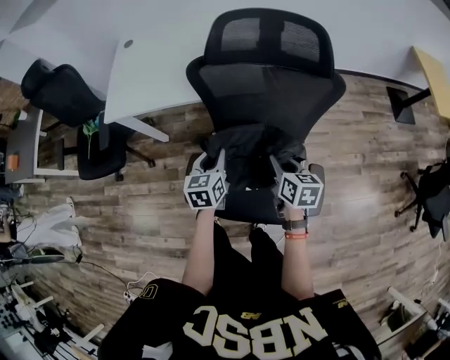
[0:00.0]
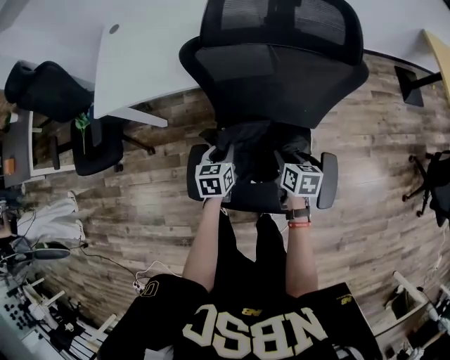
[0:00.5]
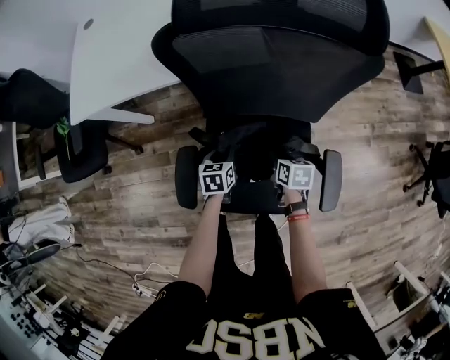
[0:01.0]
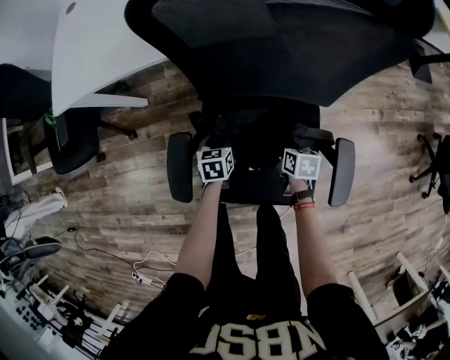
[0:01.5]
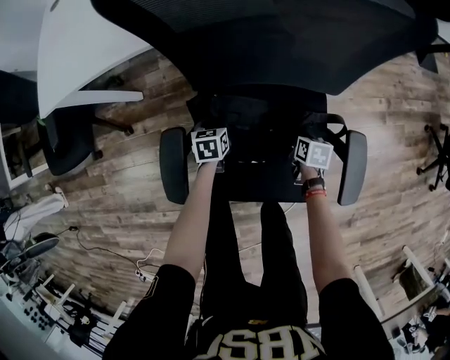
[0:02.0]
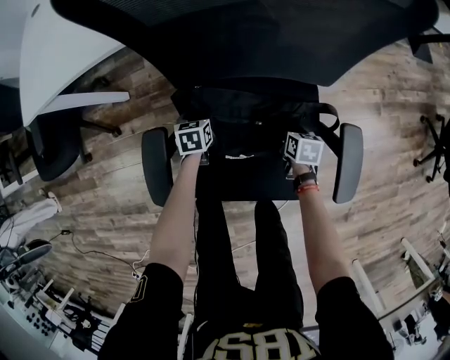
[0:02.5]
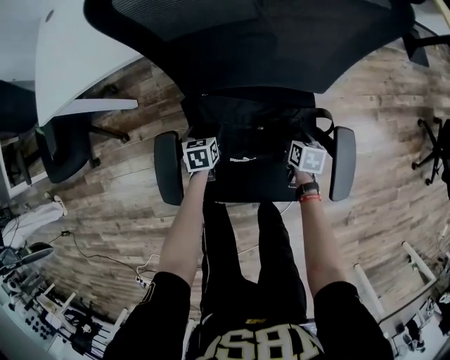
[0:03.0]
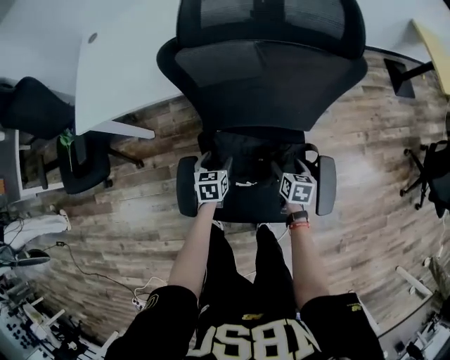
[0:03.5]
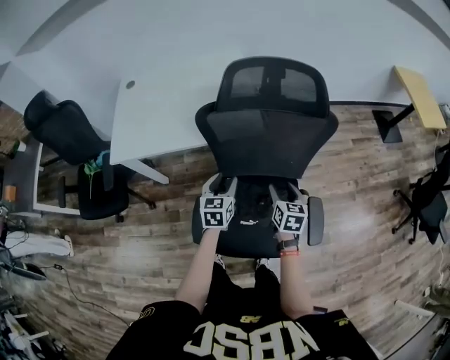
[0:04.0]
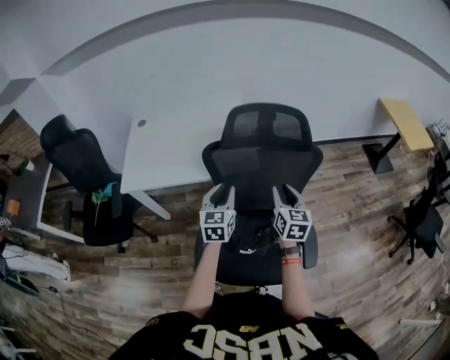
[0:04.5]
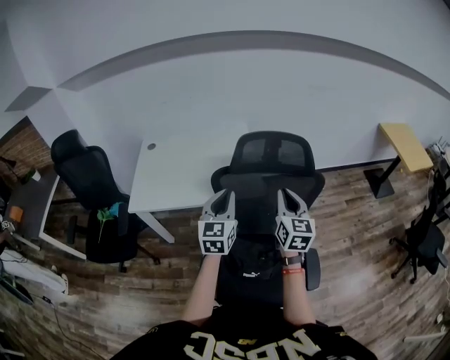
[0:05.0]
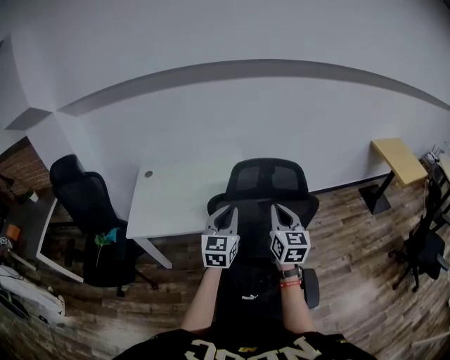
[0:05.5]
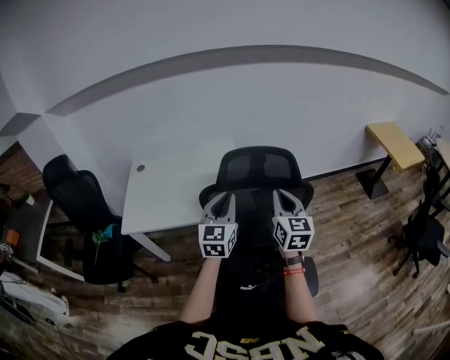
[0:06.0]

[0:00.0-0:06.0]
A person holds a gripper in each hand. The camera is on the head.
0:00.0 to 0:02.0: Both grippers move downward, approximately 40 cm. The right gripper turns by some 30 degrees. The left gripper changes its angle by roughly 30 degrees.
0:02.0 to 0:04.0: The grippers both shift upward by about 35 cm. The left gripper turns by some 30 degrees, while the right gripper rotates approximately 30 degrees.
0:04.0 to 0:06.0: Both grippers move upward, roughly 30 cm. The left gripper rotates about 30 degrees, and closes up. The right gripper swivels approximately 30 degrees, and closes its fingers.

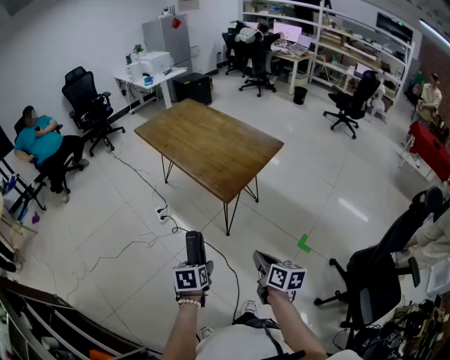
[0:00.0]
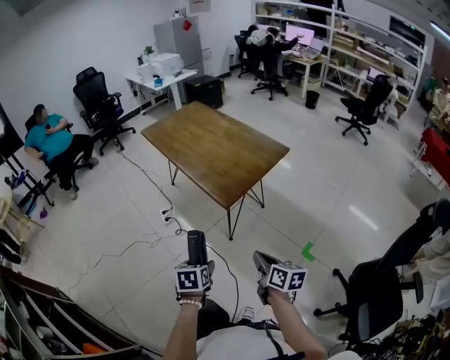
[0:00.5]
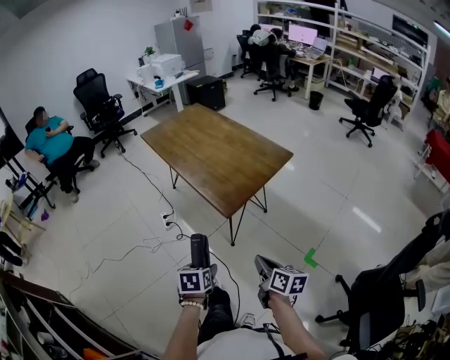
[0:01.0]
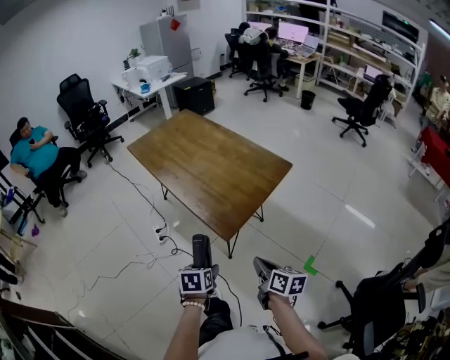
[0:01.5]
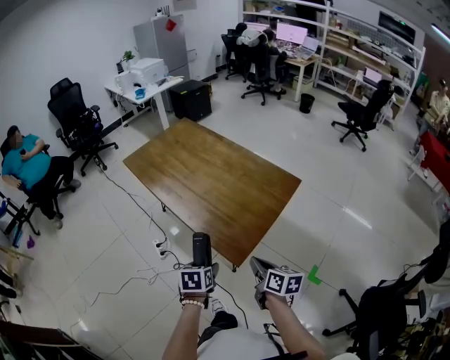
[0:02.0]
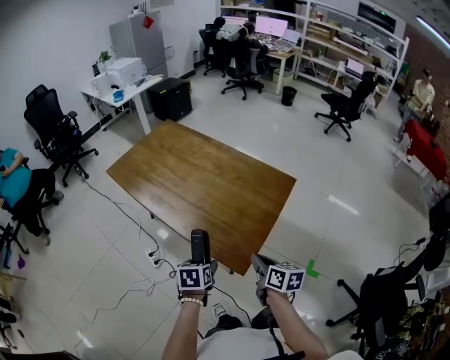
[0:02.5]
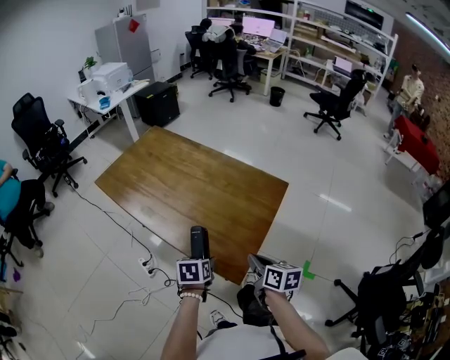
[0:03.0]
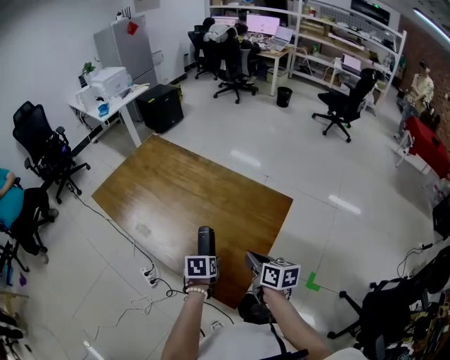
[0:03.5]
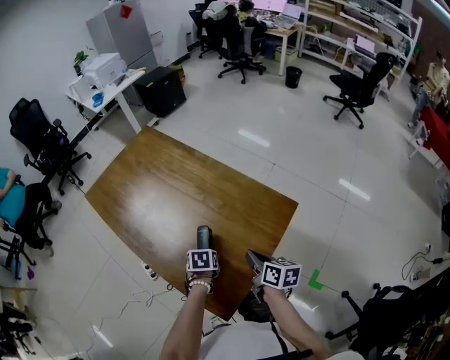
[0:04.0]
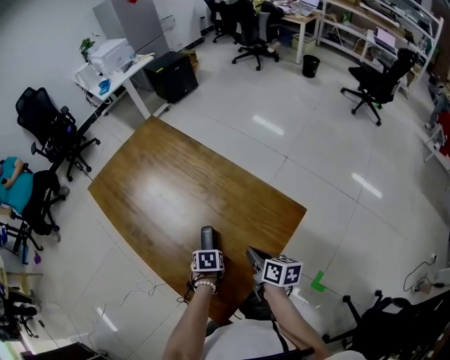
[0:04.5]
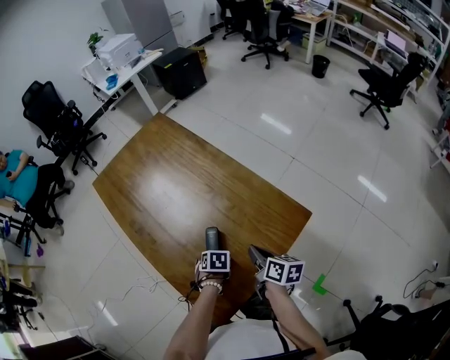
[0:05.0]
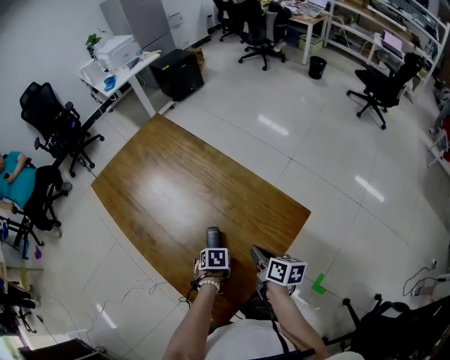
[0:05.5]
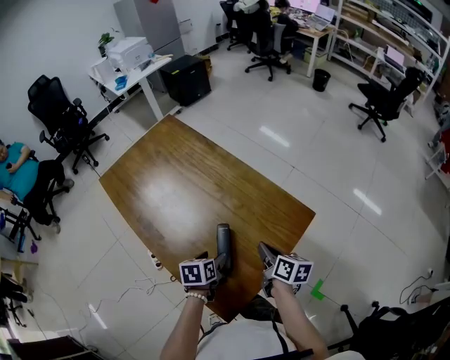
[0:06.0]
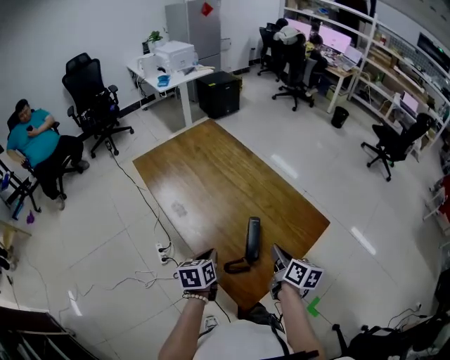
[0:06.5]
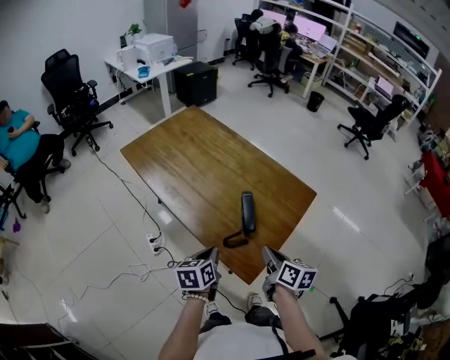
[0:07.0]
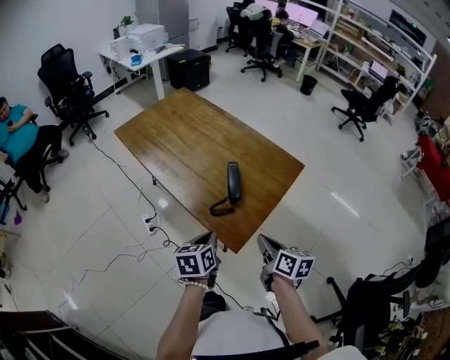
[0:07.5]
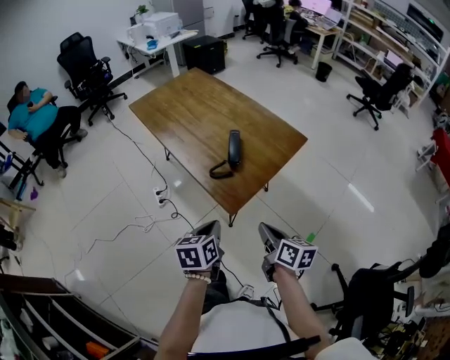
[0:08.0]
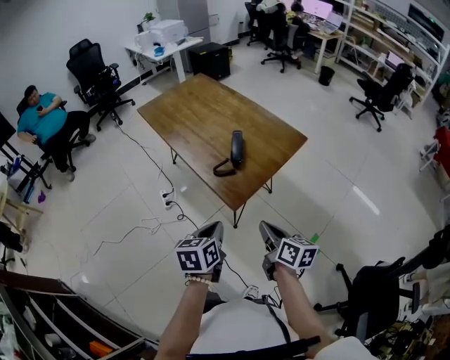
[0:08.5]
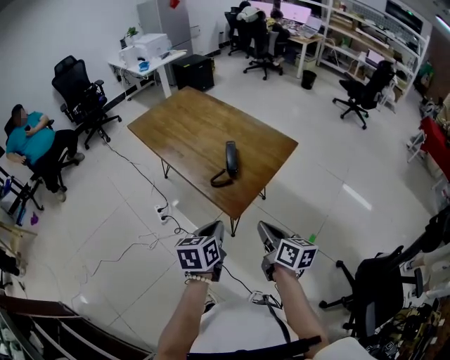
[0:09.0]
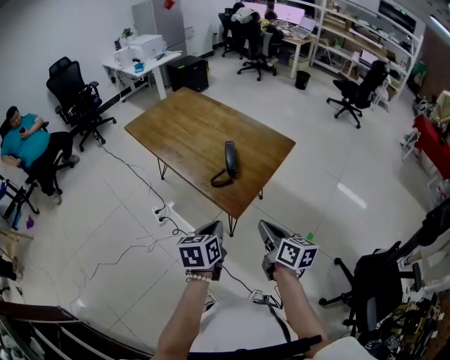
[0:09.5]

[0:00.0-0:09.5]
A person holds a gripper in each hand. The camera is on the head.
0:00.0 to 0:02.0: The two grippers go some 30 cm forward.
0:02.0 to 0:04.0: The right gripper goes approximately 25 cm forward, while the left gripper travels forward and downward by approximately 30 cm, and turns by some 20 degrees.
0:04.0 to 0:05.5: The right gripper changes place by some 5 cm.
0:05.5 to 0:07.5: The right gripper shifts by about 25 cm. Meanwhile the left gripper ends up some 30 cm from where it was, points its fingers approximately 50 degrees further upward, and closes its fingers.
0:07.5 to 0:09.5: Both grippers move backward and upward, about 15 cm.

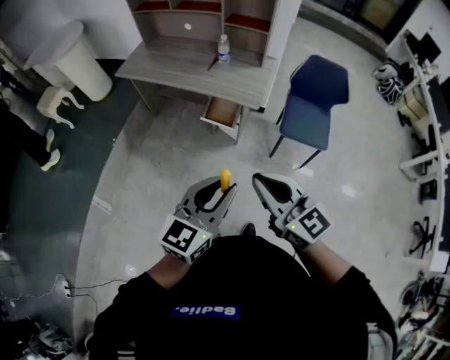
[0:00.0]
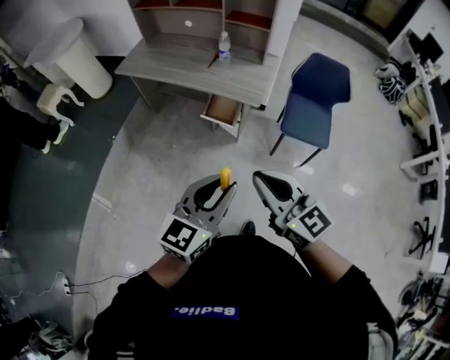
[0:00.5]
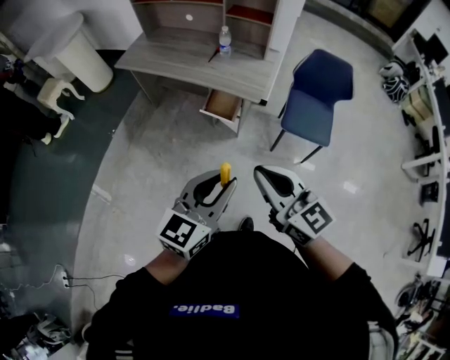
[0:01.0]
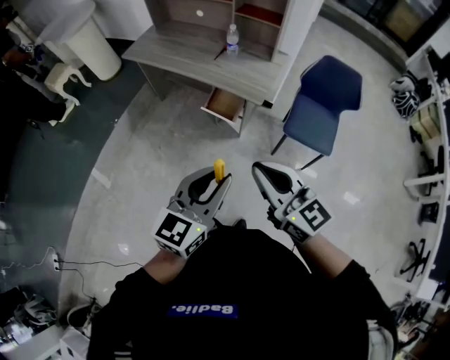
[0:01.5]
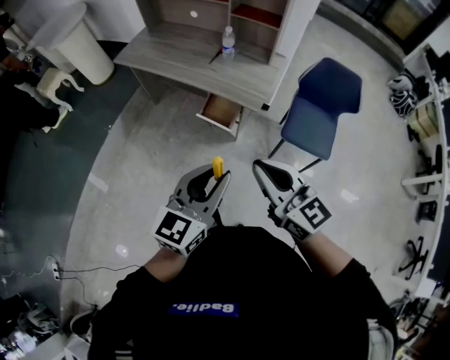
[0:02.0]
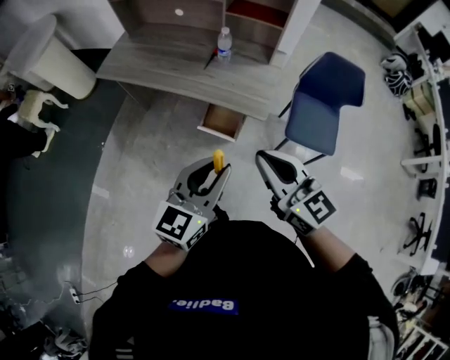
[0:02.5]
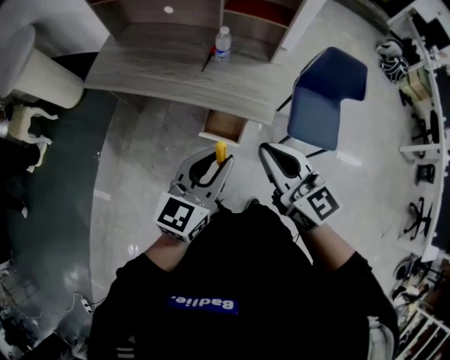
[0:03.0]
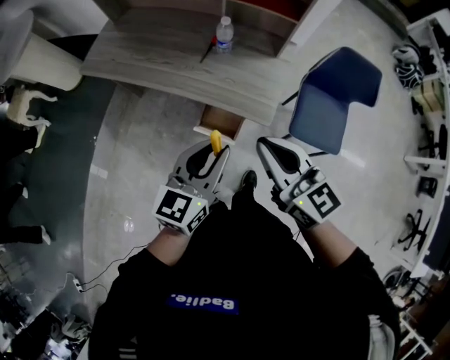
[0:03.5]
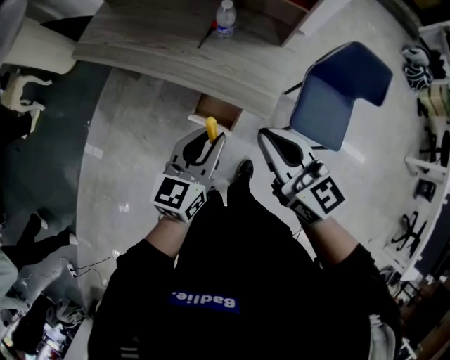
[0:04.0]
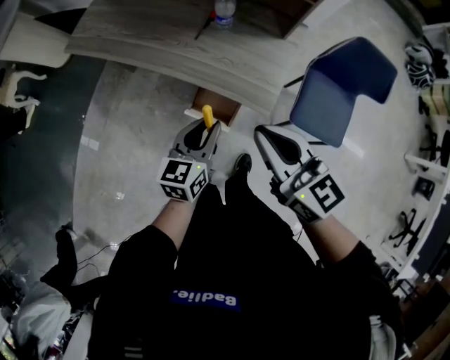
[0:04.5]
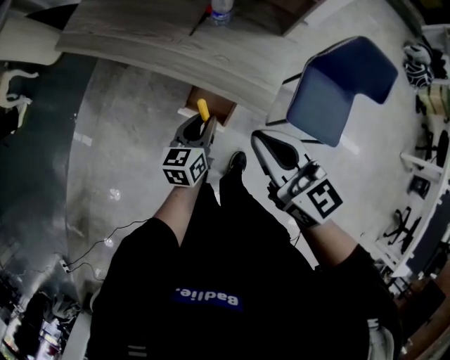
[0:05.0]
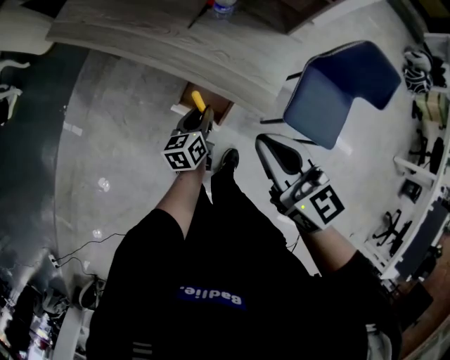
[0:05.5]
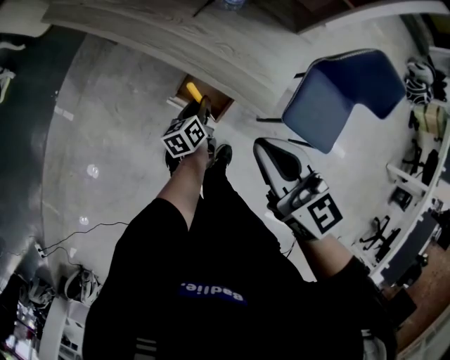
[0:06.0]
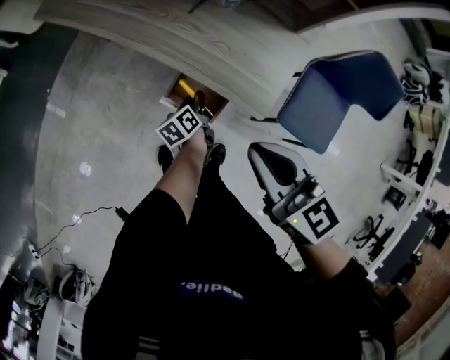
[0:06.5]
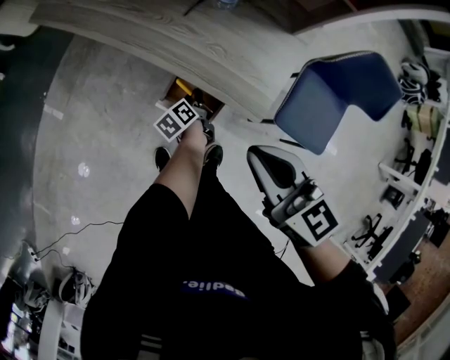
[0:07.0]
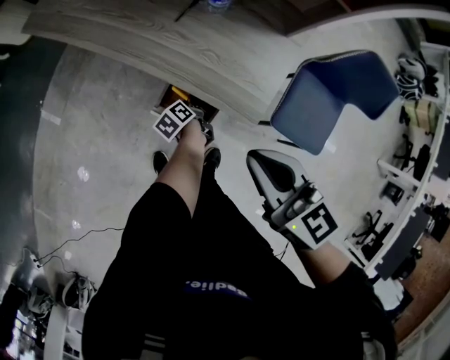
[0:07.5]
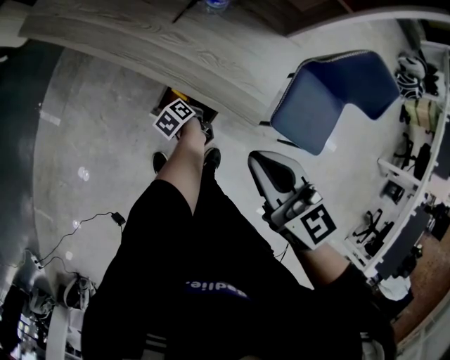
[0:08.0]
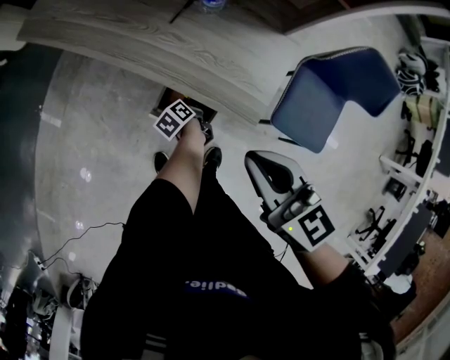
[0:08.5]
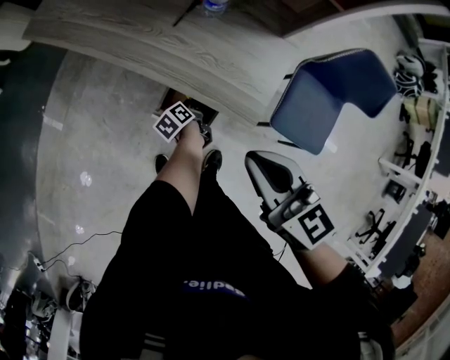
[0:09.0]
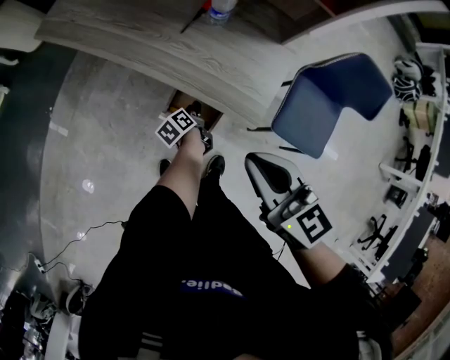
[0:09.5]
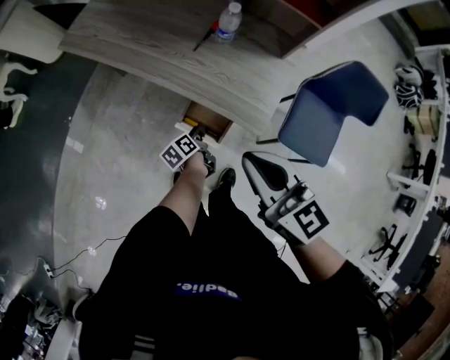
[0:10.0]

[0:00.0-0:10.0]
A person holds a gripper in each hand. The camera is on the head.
0:00.0 to 0:02.0: Both grippers move forward, about 10 cm.
0:02.0 to 0:04.0: The right gripper is displaced forward by roughly 25 cm. The left gripper moves forward and downward, approximately 30 cm.
0:04.0 to 0:06.0: The right gripper heads downward, covering some 10 cm. The left gripper heads downward, covering about 30 cm, and changes its angle by about 50 degrees.
0:06.0 to 0:08.0: The left gripper travels downward by some 10 cm, and swivels some 30 degrees.
0:08.0 to 0:10.0: The right gripper goes about 10 cm upward and to the left. The left gripper goes some 10 cm upward.

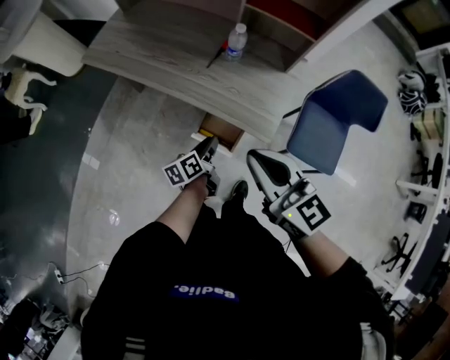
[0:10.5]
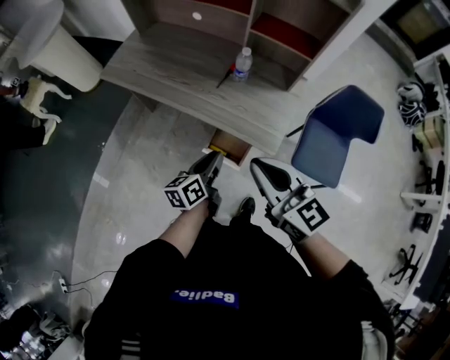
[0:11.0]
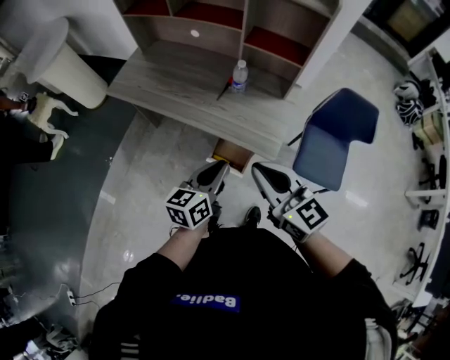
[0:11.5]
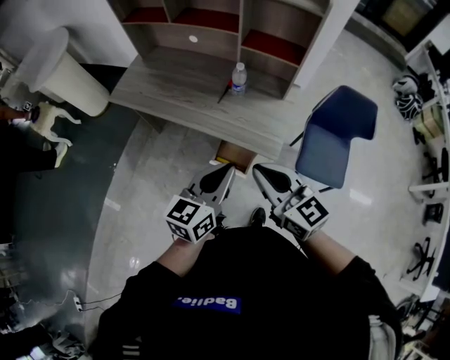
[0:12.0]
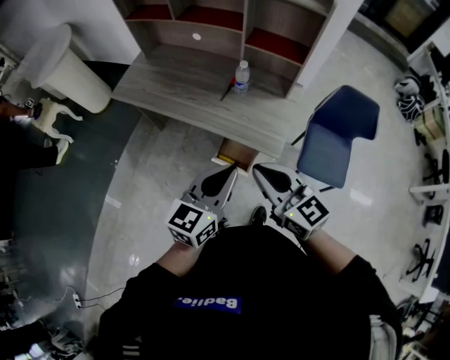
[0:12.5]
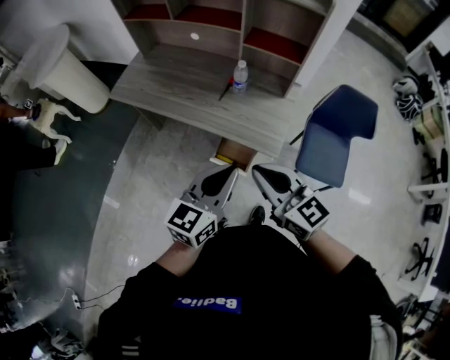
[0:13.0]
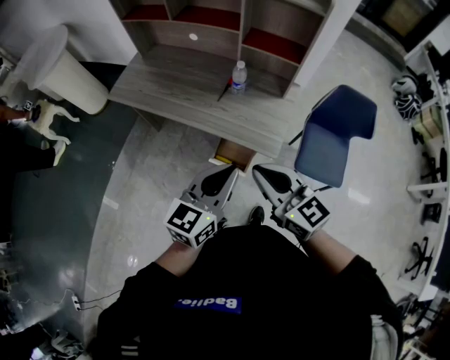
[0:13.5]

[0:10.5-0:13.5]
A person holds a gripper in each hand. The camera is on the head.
0:10.5 to 0:12.0: The right gripper shifts by approximately 5 cm; the left gripper shifts some 30 cm upward, and rotates around the line of its fingers by some 40 degrees, clockwise from behind.
0:12.0 to 0:13.5: There are only small adjustments of the grippers.
